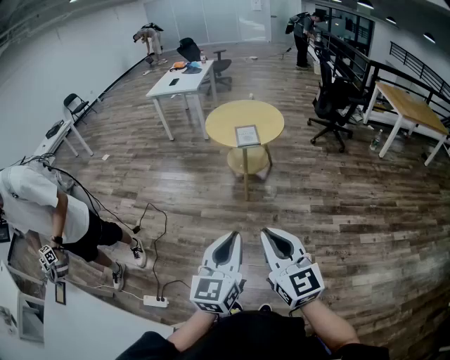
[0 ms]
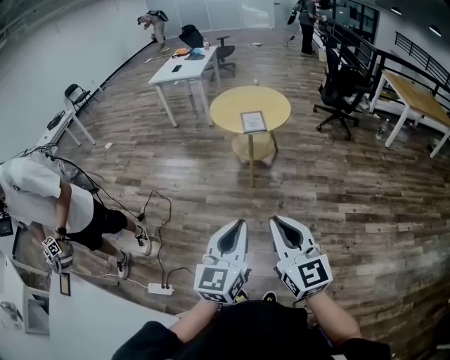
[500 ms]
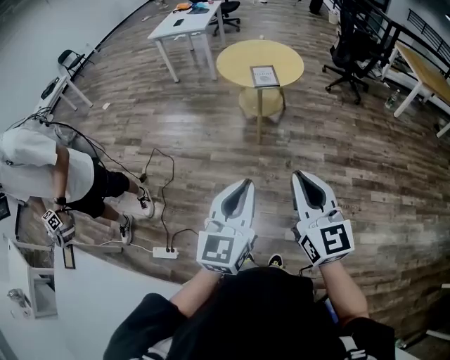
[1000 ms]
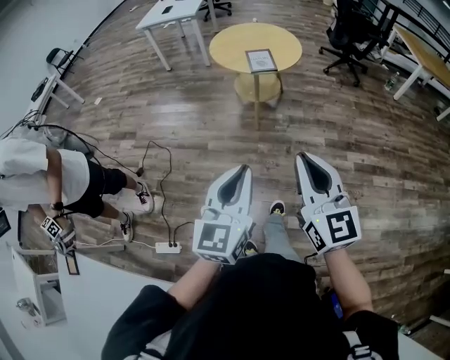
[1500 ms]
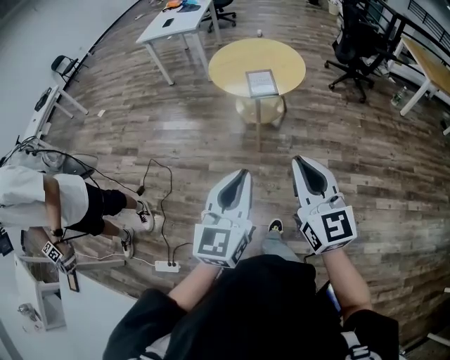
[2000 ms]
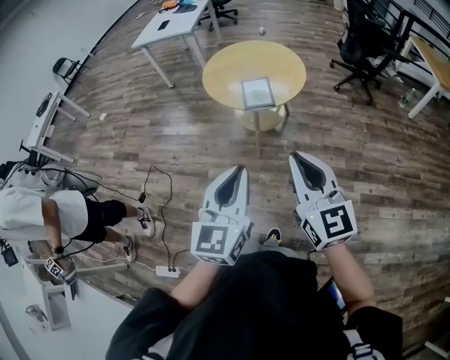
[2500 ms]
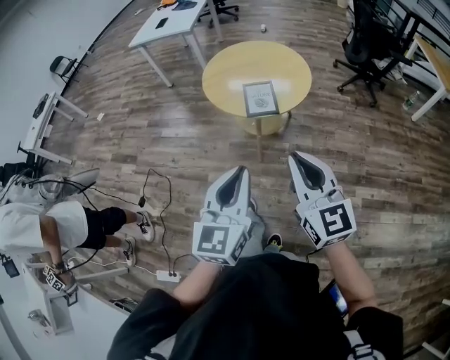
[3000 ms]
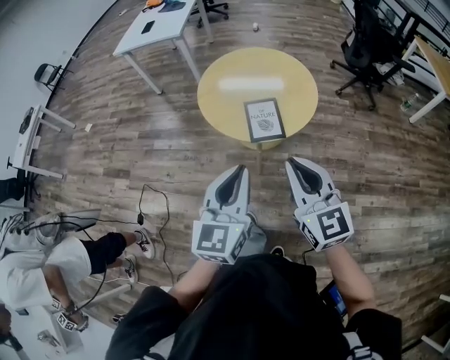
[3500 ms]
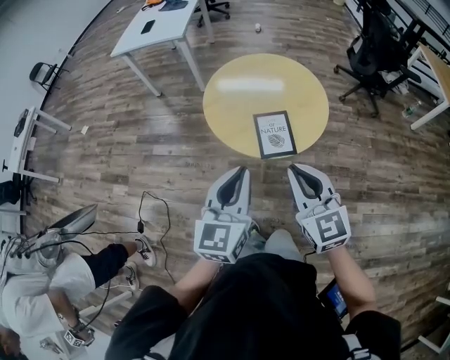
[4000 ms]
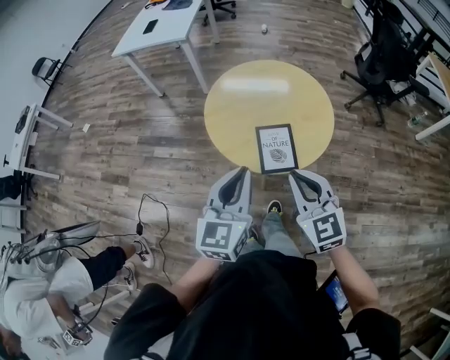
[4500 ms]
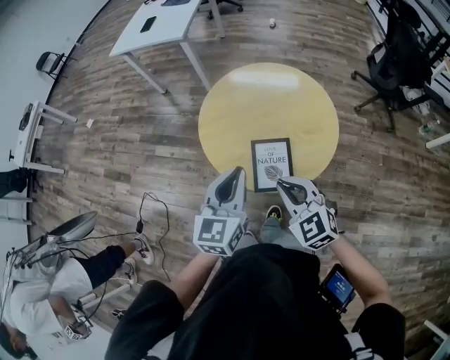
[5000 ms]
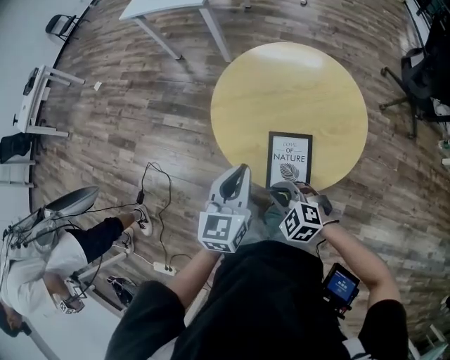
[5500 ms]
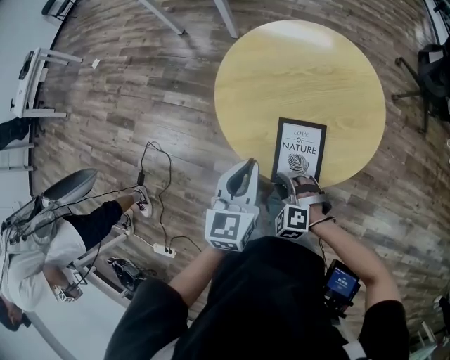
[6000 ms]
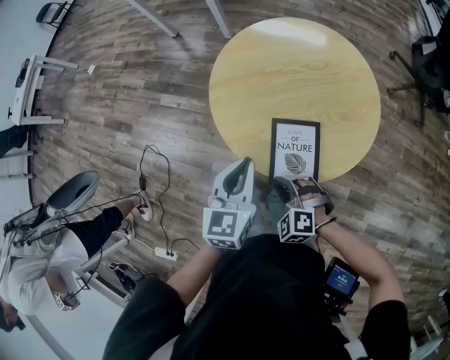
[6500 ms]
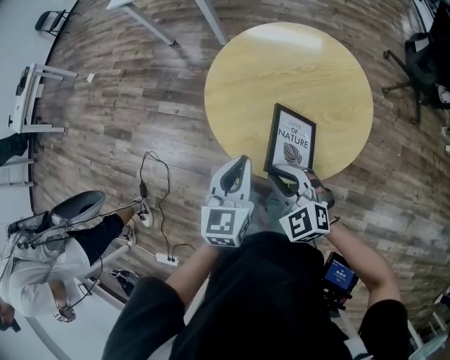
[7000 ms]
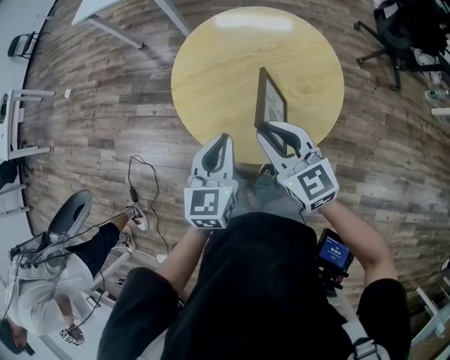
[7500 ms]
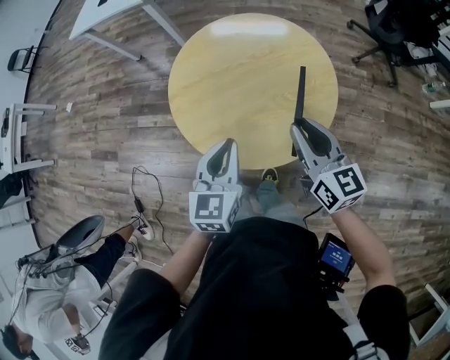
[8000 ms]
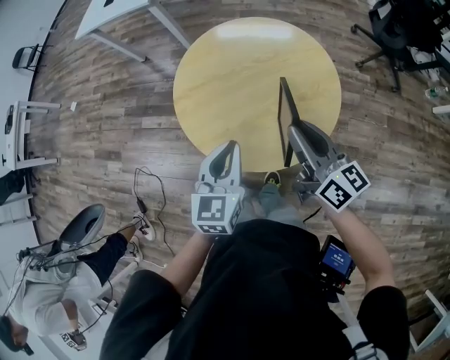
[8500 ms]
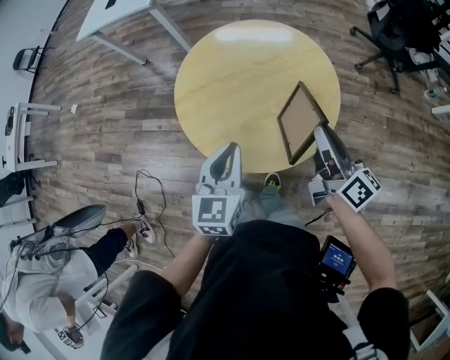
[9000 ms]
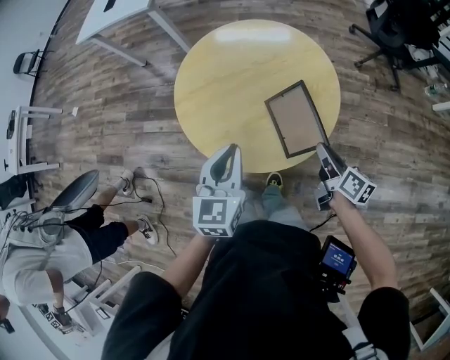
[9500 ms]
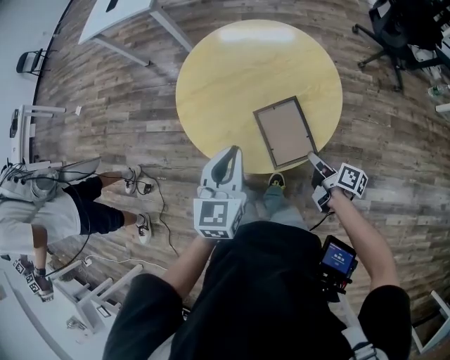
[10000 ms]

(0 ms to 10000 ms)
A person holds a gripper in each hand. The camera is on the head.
0 ms - 2000 ms: Both grippers travel together forward, about 20 cm.
2000 ms - 4000 ms: The pair of grippers is taken forward, approximately 40 cm.
4000 ms - 6000 ms: The right gripper heads downward, covering approximately 35 cm, angles its fingers downward, by approximately 50 degrees, and opens its fingers, while the left gripper ends up about 30 cm from where it was, and changes its angle by approximately 20 degrees.
6000 ms - 8000 ms: The left gripper shifts some 10 cm to the right; the right gripper shifts some 30 cm upward and to the right, and angles its fingers upward, by about 50 degrees.
8000 ms - 10000 ms: The right gripper goes approximately 20 cm downward, and rolls clockwise, seen from behind, by some 60 degrees.

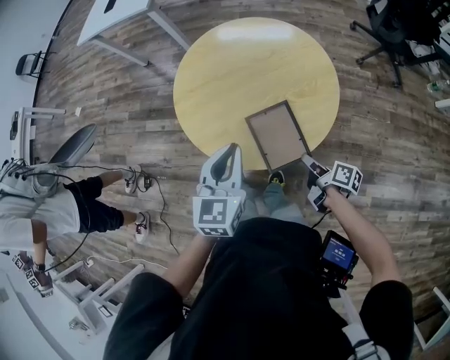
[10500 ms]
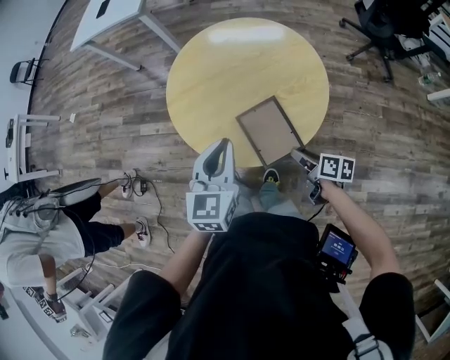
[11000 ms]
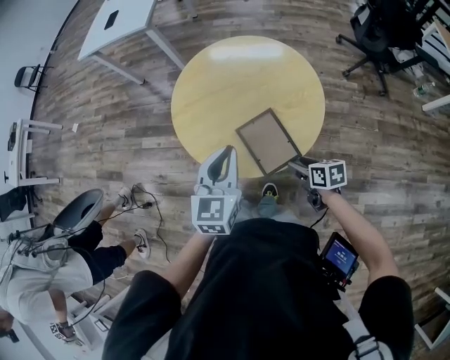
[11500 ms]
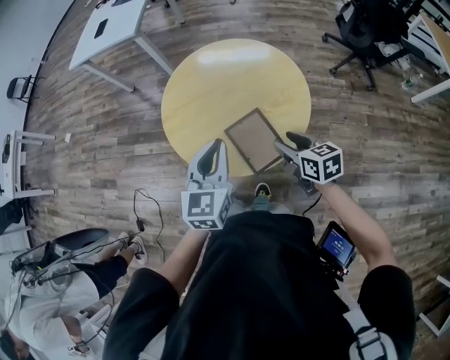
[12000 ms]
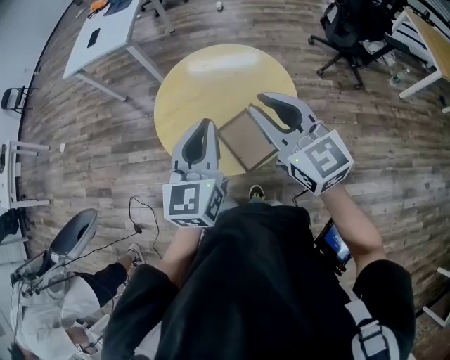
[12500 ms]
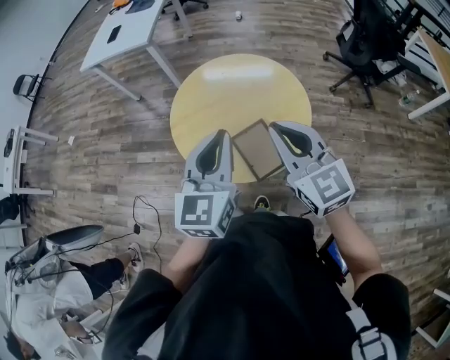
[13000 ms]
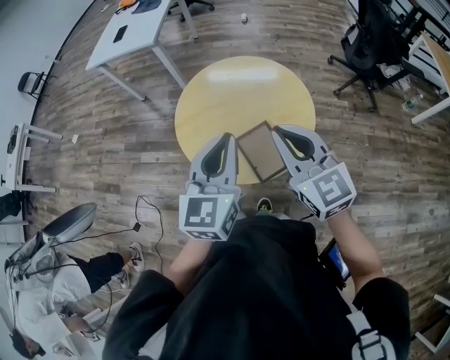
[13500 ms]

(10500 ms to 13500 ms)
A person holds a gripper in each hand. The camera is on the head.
10500 ms - 12000 ms: The right gripper heads upward and forward, covering approximately 15 cm, rotates around the line of its fingers by roughly 50 degrees, counterclockwise from behind, and opens; the left gripper ends up about 5 cm from where it was.
12000 ms - 13500 ms: The right gripper heads upward, covering approximately 25 cm, changes its angle by roughly 40 degrees, and closes up, while the left gripper moves upward, about 10 cm.

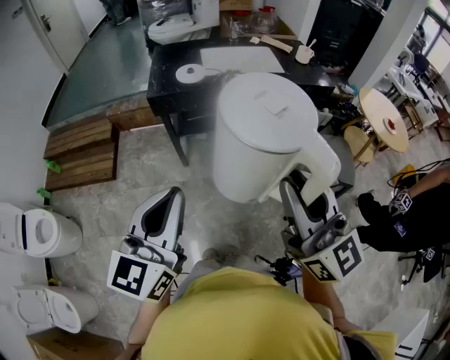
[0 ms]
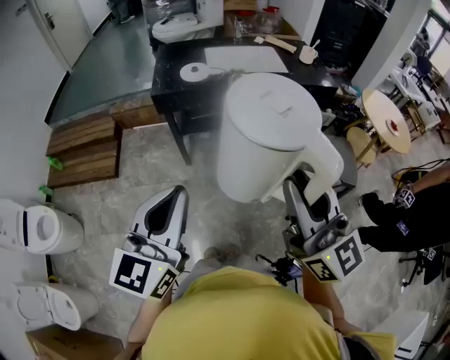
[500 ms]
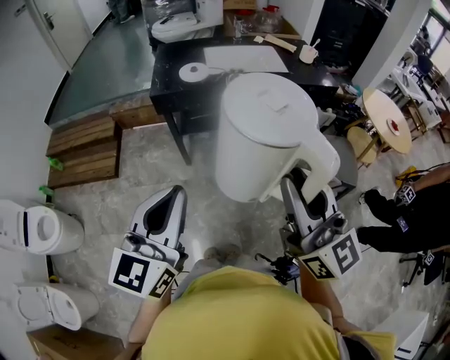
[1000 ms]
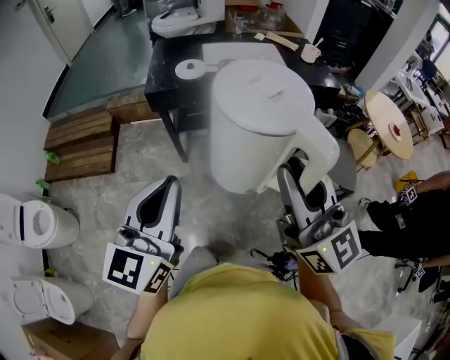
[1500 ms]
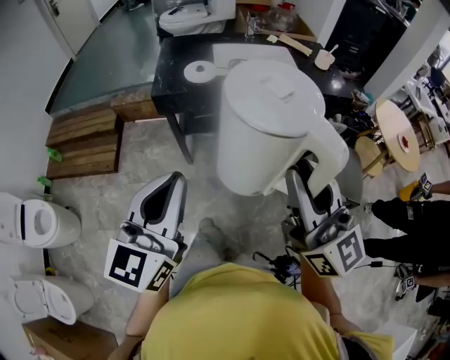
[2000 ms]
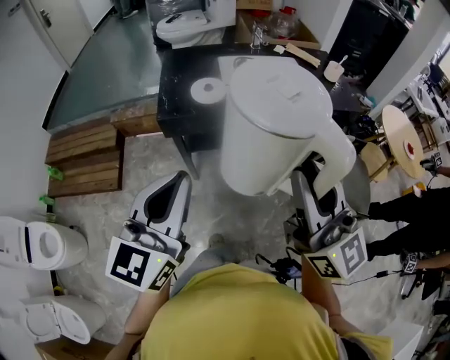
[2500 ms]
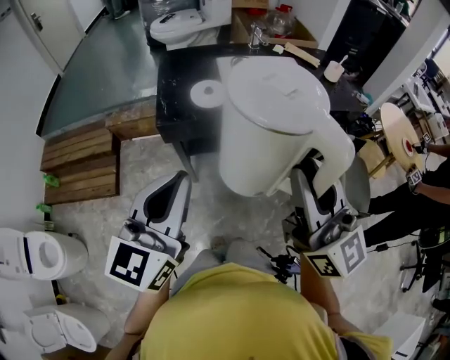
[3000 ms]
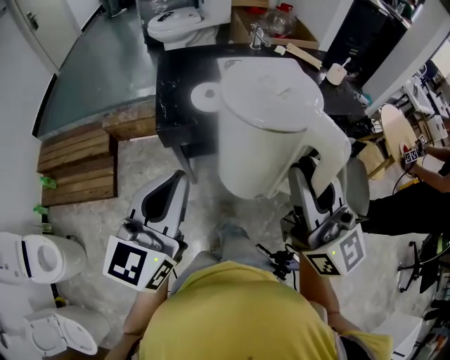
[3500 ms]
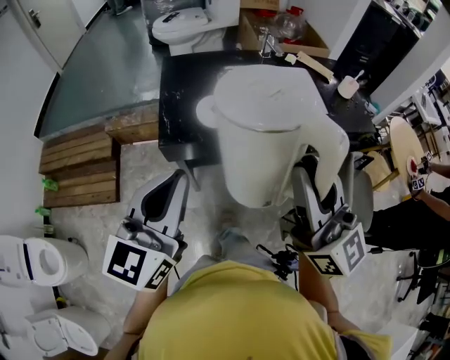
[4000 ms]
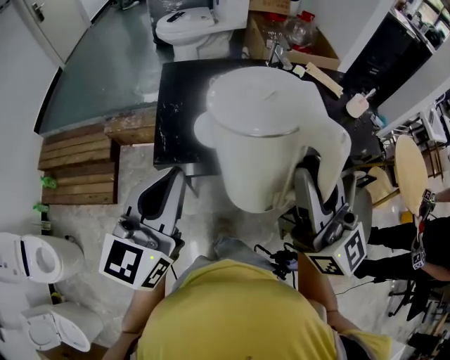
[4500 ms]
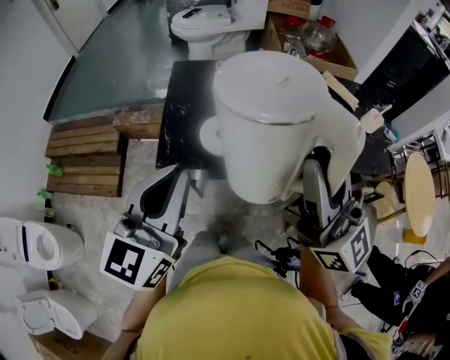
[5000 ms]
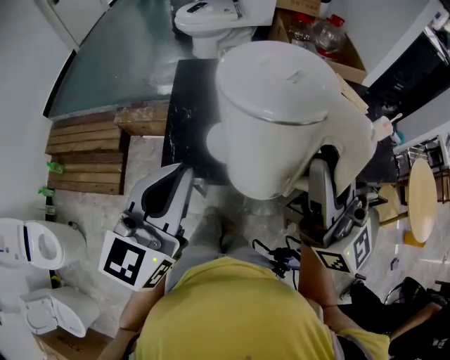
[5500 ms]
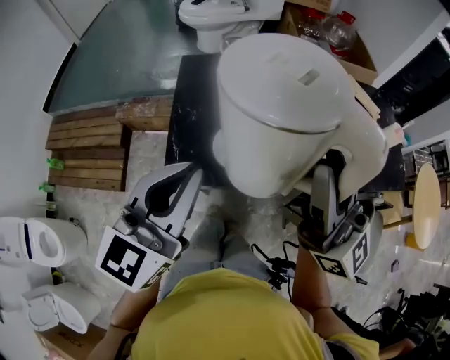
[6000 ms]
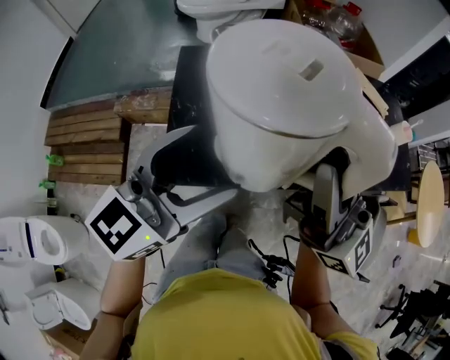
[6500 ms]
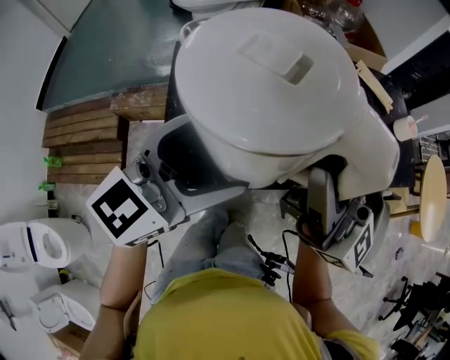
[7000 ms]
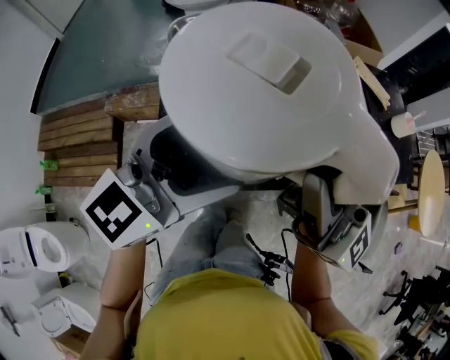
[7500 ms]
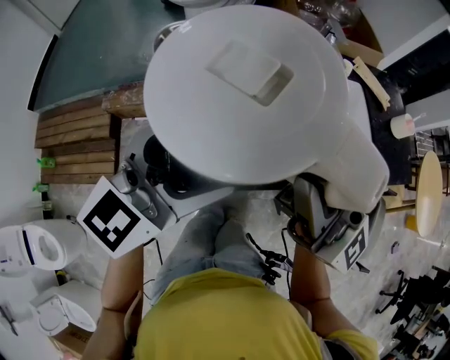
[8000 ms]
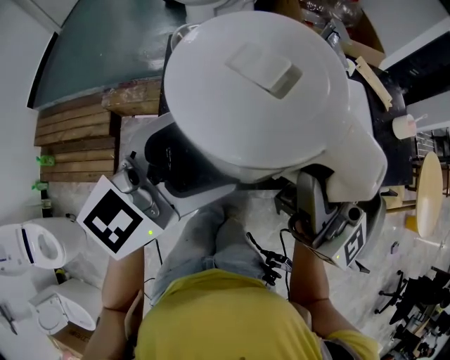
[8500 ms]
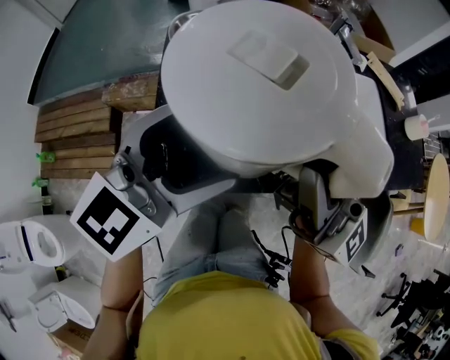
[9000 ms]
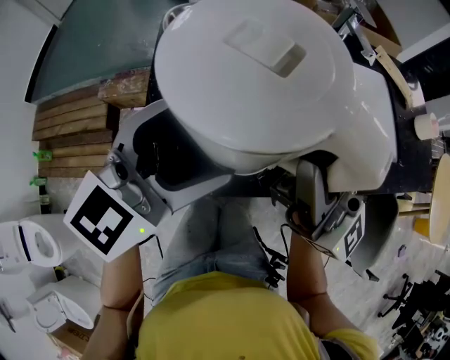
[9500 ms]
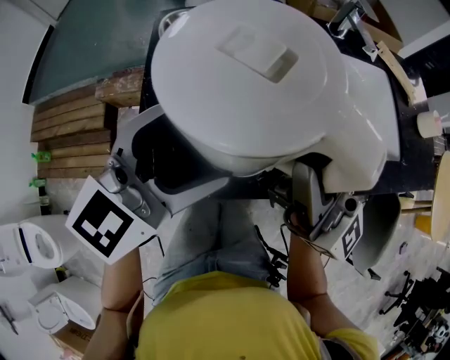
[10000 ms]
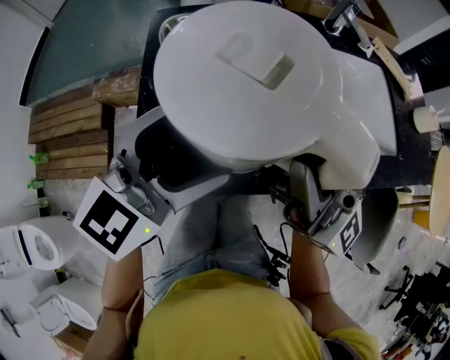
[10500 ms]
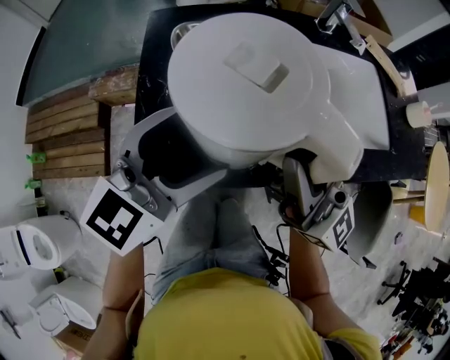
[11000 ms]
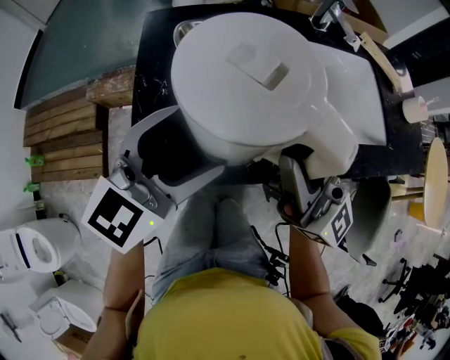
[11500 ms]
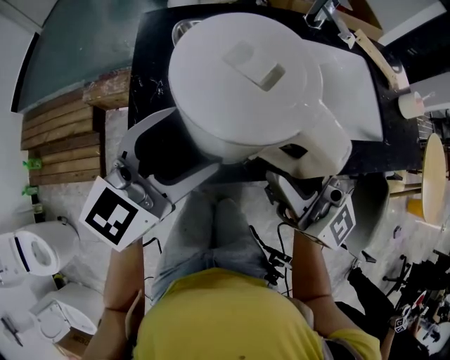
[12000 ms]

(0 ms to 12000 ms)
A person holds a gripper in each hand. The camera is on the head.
0 ms - 2000 ms: Both grippers move forward, approximately 10 cm.
2000 ms - 4000 ms: Both grippers move forward, approximately 25 cm.
4000 ms - 6000 ms: Both grippers travel together forward, some 20 cm.
6000 ms - 8000 ms: The right gripper goes about 5 cm to the left. Meanwhile the left gripper is displaced forward by about 5 cm, turns by approximately 20 degrees, and opens.
8000 ms - 10000 ms: Both grippers travel together downward, approximately 10 cm.
10000 ms - 12000 ms: The right gripper opens up.

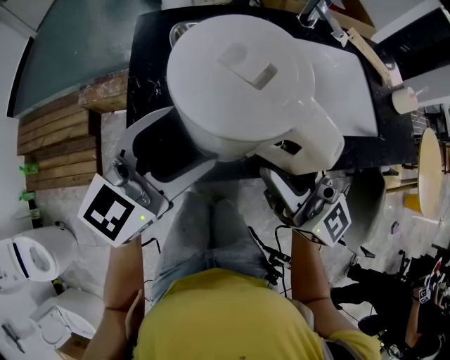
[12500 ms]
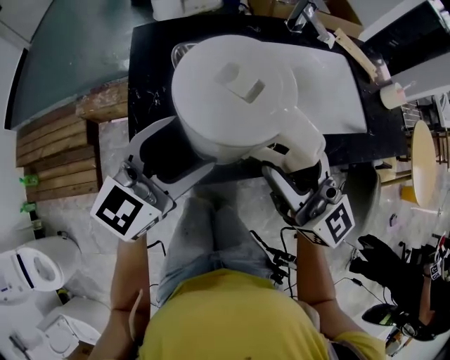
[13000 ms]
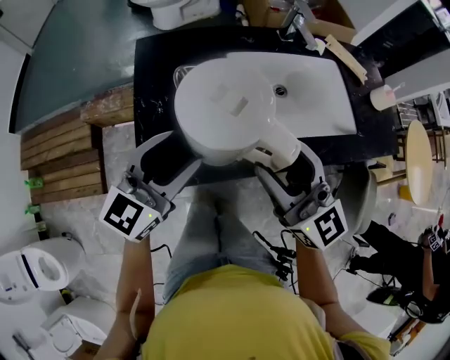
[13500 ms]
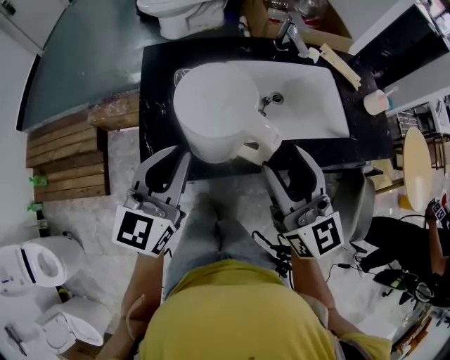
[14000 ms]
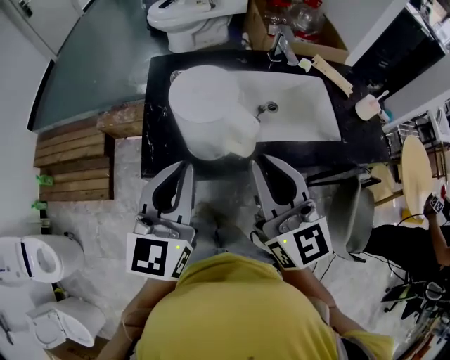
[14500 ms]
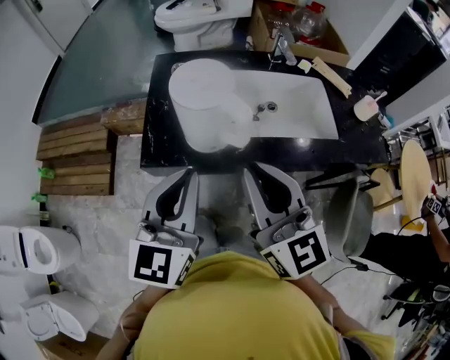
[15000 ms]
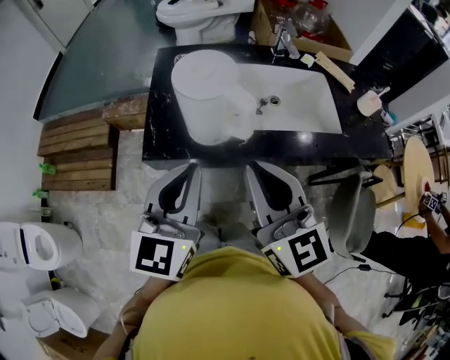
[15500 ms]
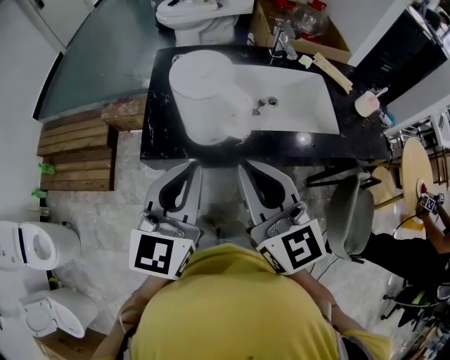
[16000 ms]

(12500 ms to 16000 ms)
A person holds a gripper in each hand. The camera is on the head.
12500 ms - 14500 ms: The two grippers go about 15 cm upward and backward. The left gripper turns by about 30 degrees, and closes up. The right gripper rotates roughly 20 degrees, and closes.
14500 ms - 16000 ms: The two grippers go roughly 5 cm backward.
